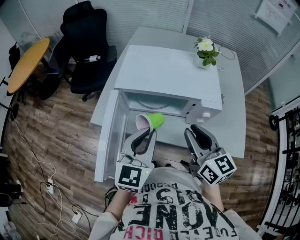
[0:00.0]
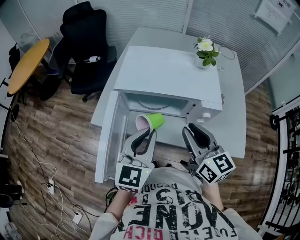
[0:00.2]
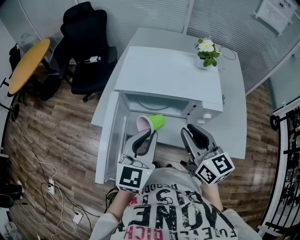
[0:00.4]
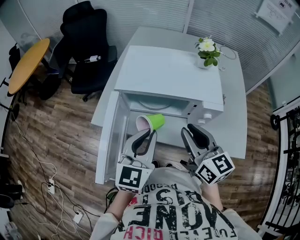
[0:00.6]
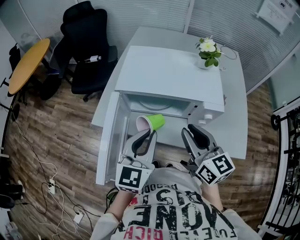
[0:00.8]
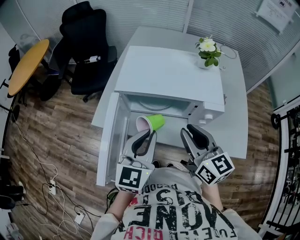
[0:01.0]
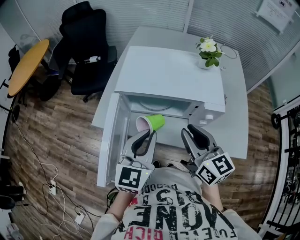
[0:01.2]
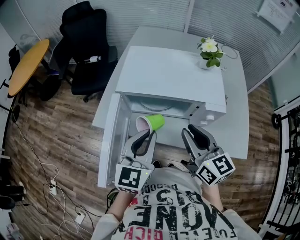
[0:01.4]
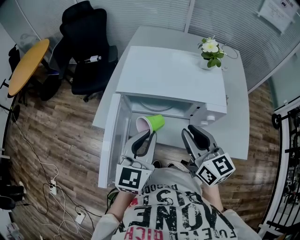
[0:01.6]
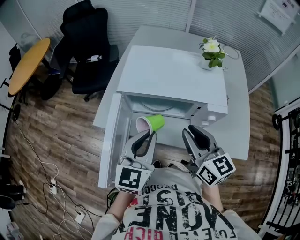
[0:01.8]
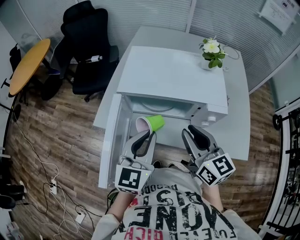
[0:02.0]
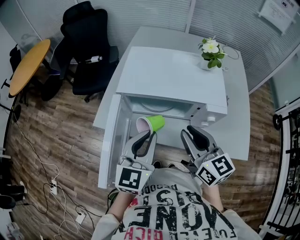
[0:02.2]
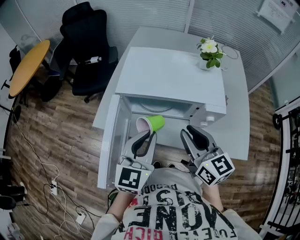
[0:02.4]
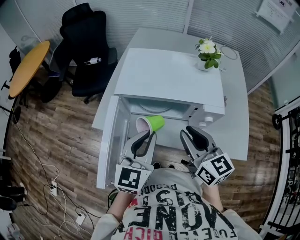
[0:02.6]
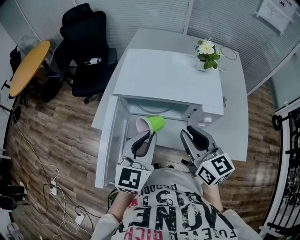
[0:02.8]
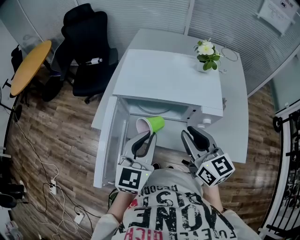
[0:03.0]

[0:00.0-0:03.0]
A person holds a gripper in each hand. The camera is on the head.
0:00.0 to 0:03.0: There are only small adjustments of the grippers.

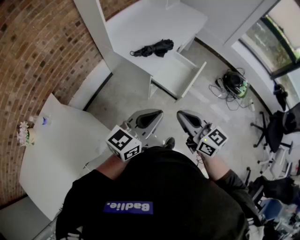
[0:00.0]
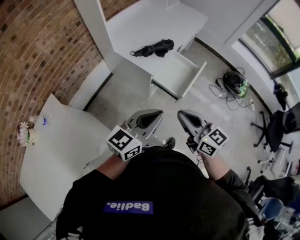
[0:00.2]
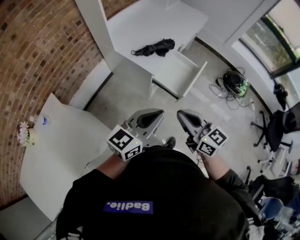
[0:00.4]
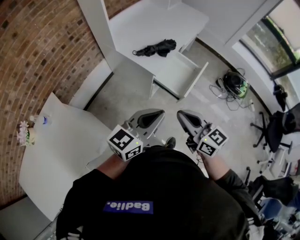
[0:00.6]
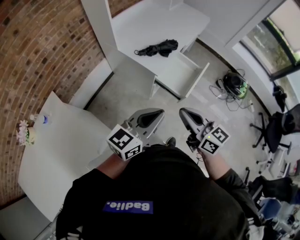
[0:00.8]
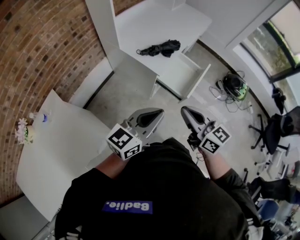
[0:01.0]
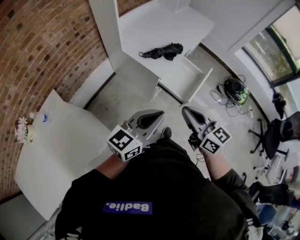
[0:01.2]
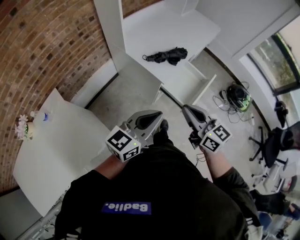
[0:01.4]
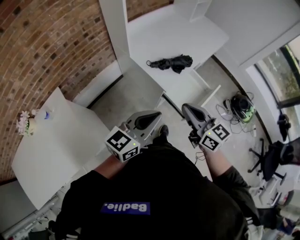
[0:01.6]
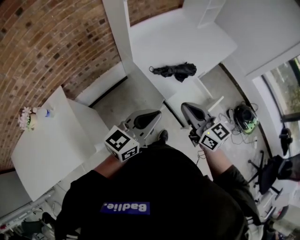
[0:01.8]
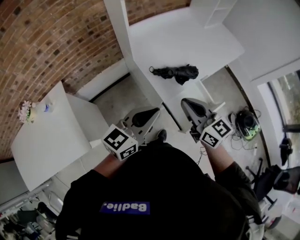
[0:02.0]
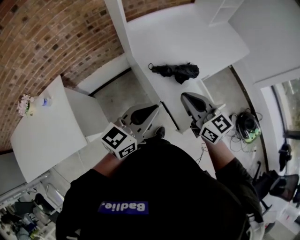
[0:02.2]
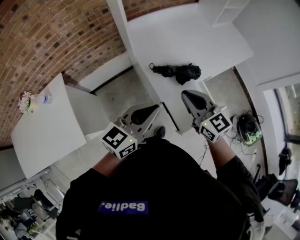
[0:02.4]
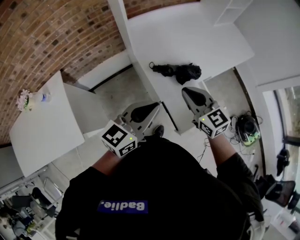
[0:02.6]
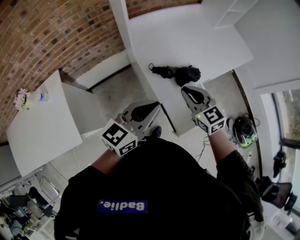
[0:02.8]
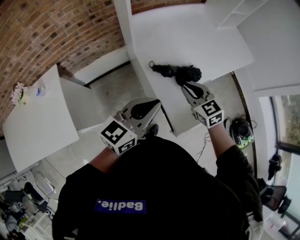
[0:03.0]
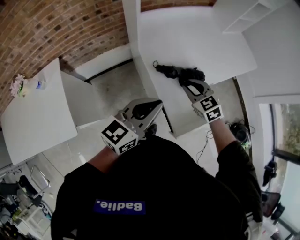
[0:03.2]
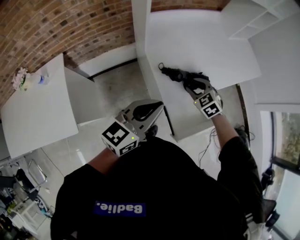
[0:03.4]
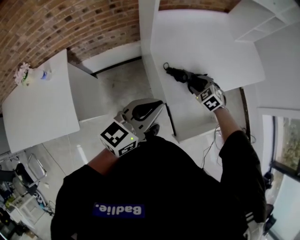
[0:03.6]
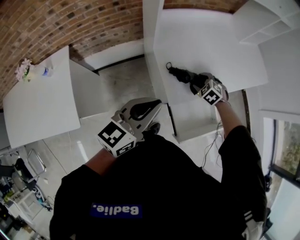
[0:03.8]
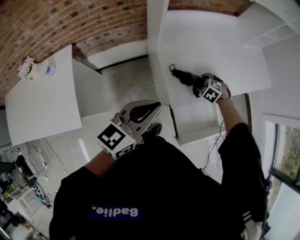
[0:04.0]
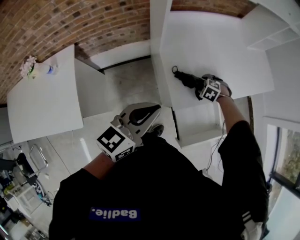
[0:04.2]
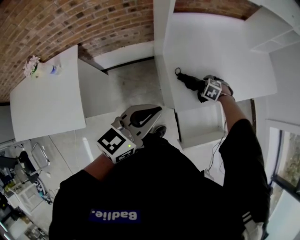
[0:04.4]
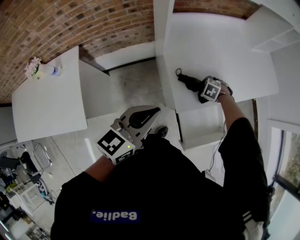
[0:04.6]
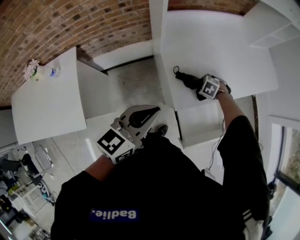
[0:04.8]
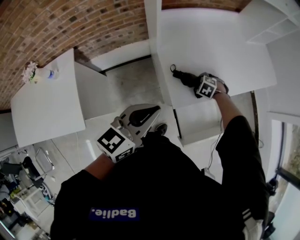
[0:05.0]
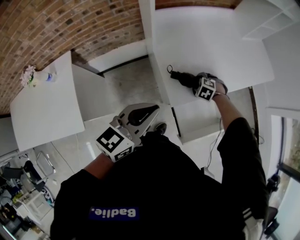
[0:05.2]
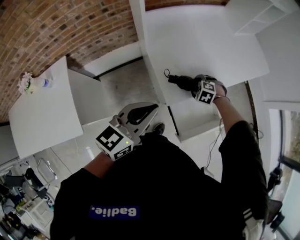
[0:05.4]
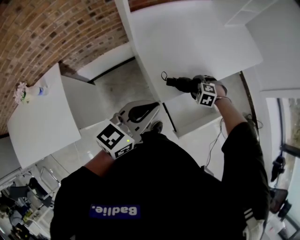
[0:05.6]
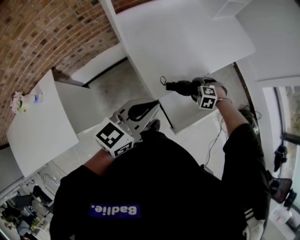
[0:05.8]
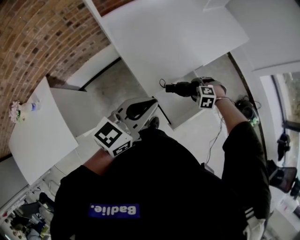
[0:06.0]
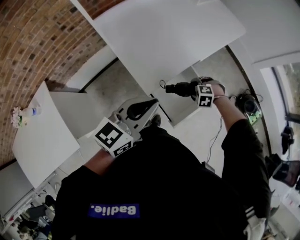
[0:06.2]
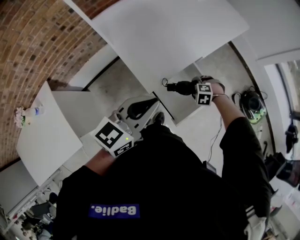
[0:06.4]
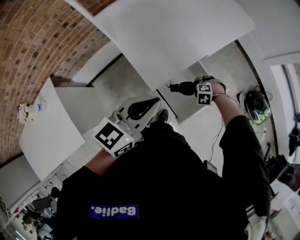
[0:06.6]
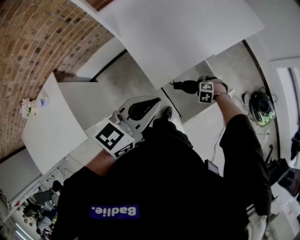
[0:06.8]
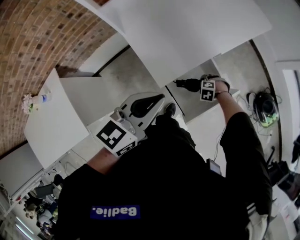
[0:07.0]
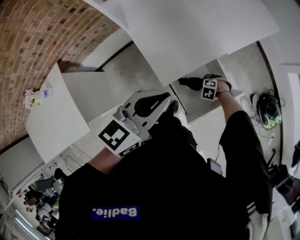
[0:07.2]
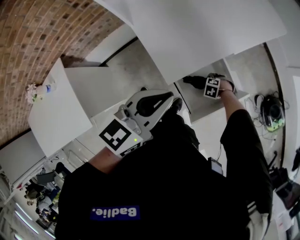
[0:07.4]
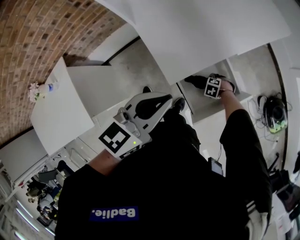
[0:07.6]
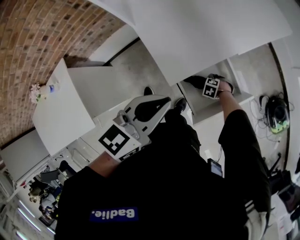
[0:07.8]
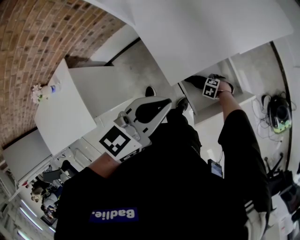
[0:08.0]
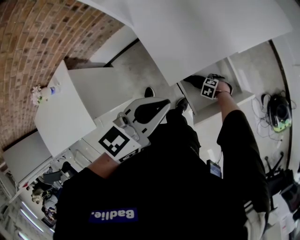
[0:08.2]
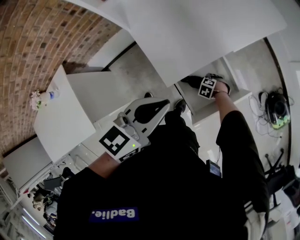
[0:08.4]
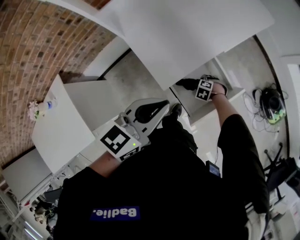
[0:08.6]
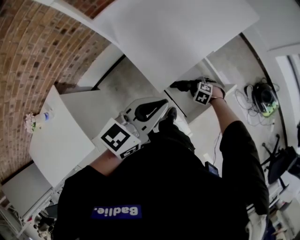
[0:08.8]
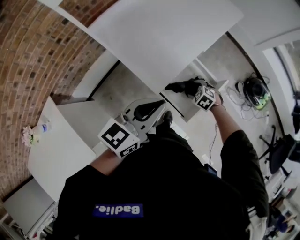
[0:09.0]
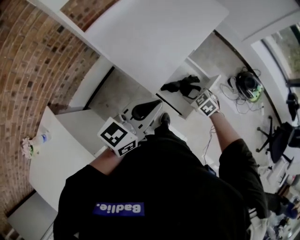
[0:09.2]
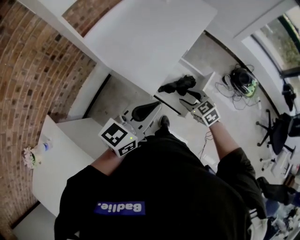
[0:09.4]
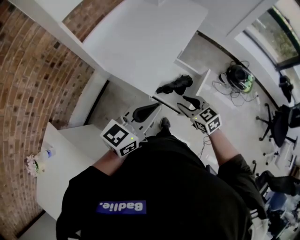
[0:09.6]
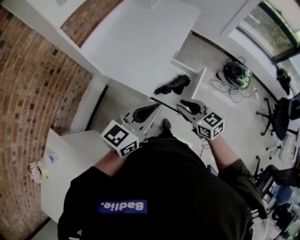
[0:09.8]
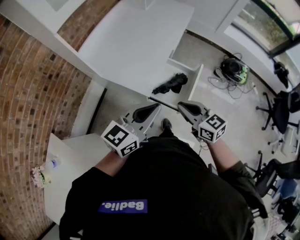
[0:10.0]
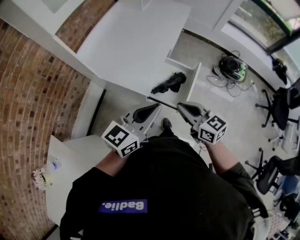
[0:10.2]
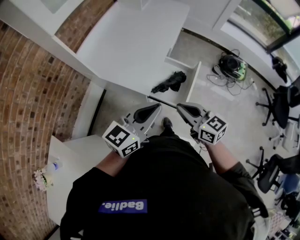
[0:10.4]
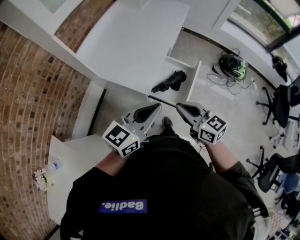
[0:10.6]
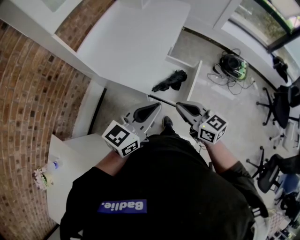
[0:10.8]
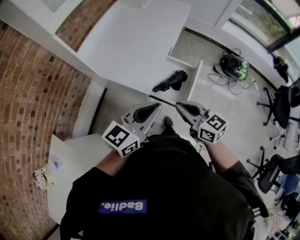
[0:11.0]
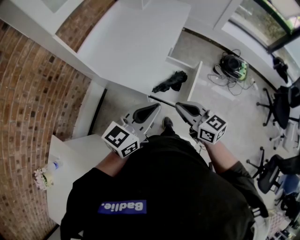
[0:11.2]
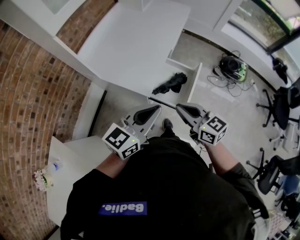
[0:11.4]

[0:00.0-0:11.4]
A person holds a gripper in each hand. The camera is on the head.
0:00.0 to 0:01.4: The left gripper goes about 5 cm to the left, while the right gripper goes approximately 5 cm forward.
0:01.4 to 0:02.8: The left gripper travels forward and to the right by roughly 20 cm, and turns by approximately 20 degrees; the right gripper is displaced forward by some 25 cm, and rotates approximately 30 degrees.
0:02.8 to 0:04.2: The left gripper moves approximately 10 cm; the right gripper goes roughly 25 cm downward, points its fingers some 50 degrees further downward, and opens.
0:04.2 to 0:05.6: The right gripper moves roughly 10 cm; the left gripper ends up approximately 5 cm from where it was.
0:05.6 to 0:07.2: The left gripper ends up roughly 10 cm from where it was. Meanwhile the right gripper shifts approximately 20 cm downward.
0:08.6 to 0:10.0: The right gripper moves upward, some 40 cm, tips its fingers upward by roughly 60 degrees, and closes its fingers. The left gripper moves approximately 10 cm, and swivels approximately 30 degrees.
0:10.0 to 0:11.4: The grippers stay close to where they were, moving slightly.

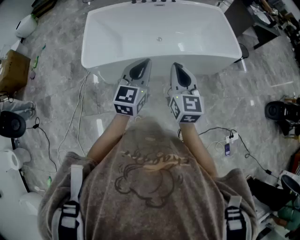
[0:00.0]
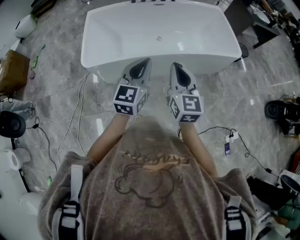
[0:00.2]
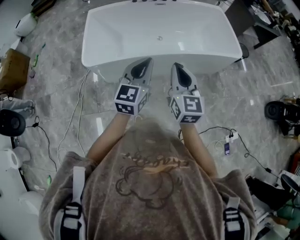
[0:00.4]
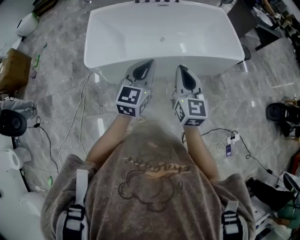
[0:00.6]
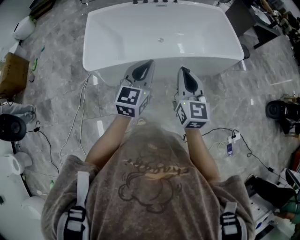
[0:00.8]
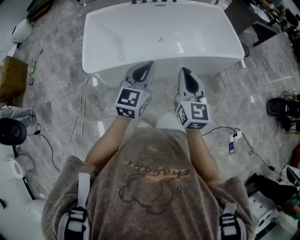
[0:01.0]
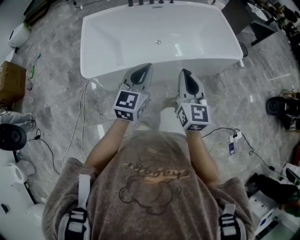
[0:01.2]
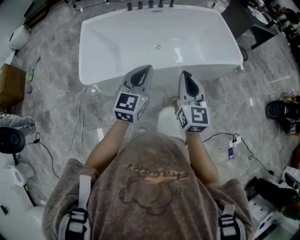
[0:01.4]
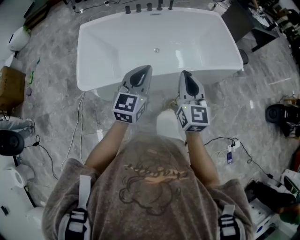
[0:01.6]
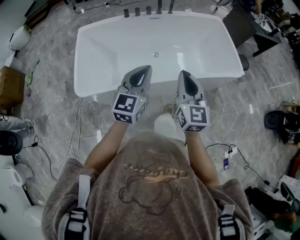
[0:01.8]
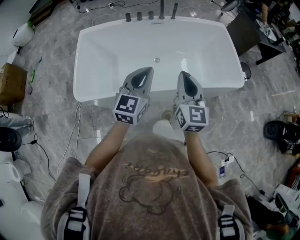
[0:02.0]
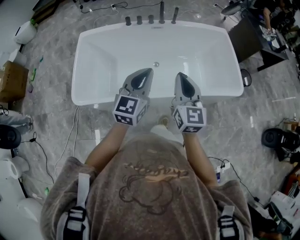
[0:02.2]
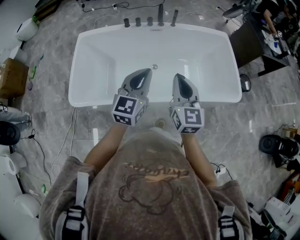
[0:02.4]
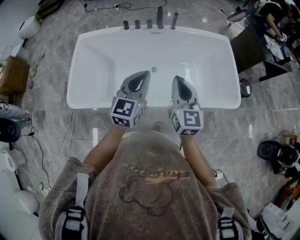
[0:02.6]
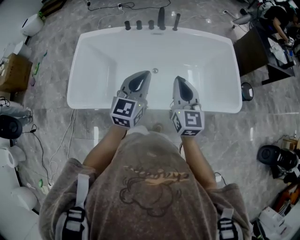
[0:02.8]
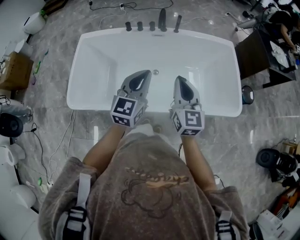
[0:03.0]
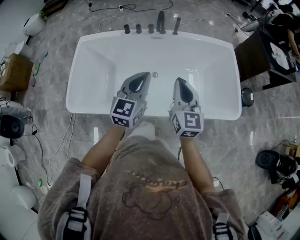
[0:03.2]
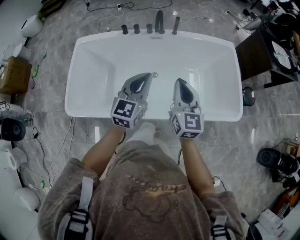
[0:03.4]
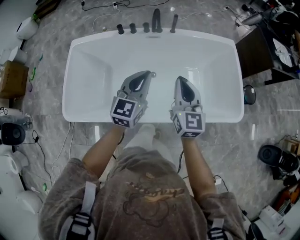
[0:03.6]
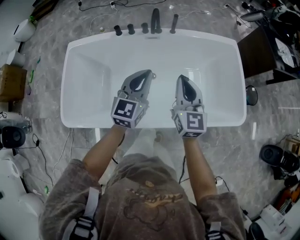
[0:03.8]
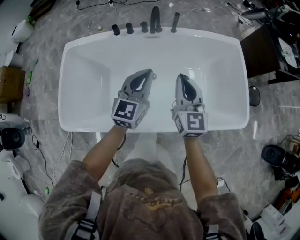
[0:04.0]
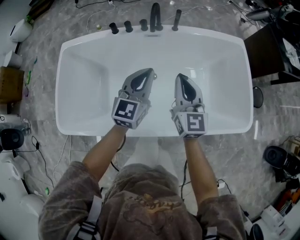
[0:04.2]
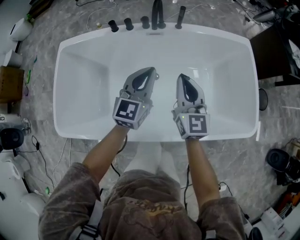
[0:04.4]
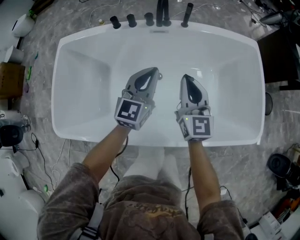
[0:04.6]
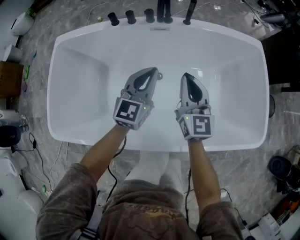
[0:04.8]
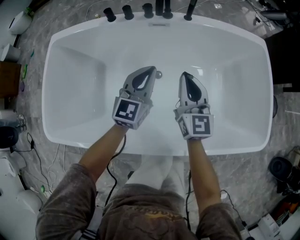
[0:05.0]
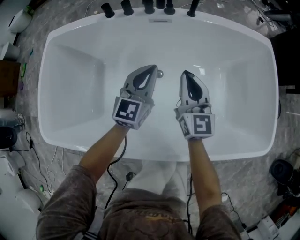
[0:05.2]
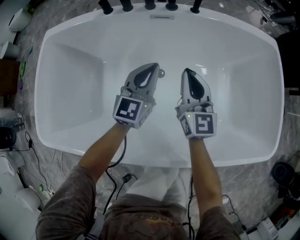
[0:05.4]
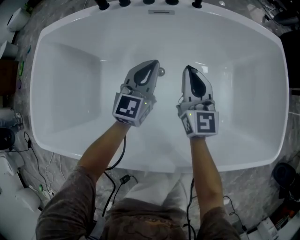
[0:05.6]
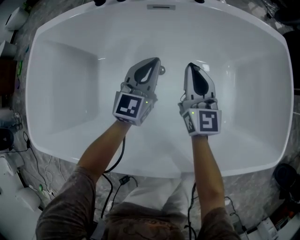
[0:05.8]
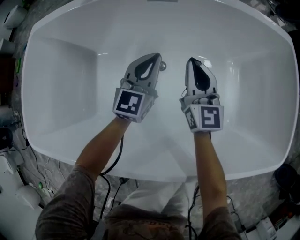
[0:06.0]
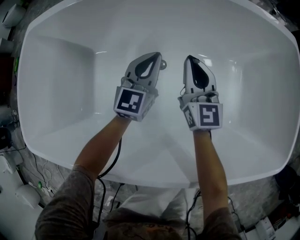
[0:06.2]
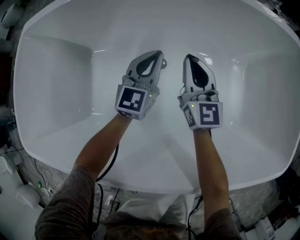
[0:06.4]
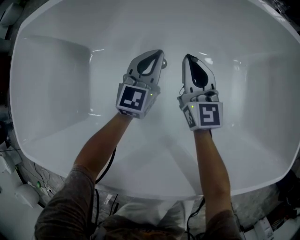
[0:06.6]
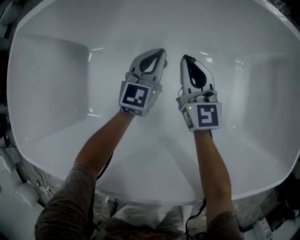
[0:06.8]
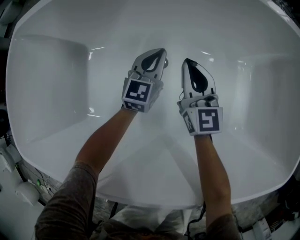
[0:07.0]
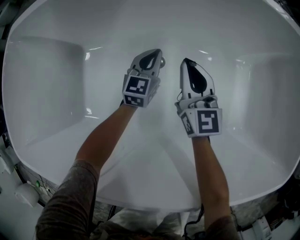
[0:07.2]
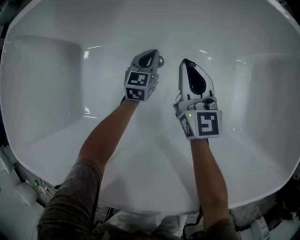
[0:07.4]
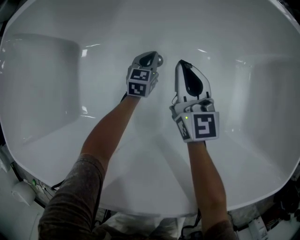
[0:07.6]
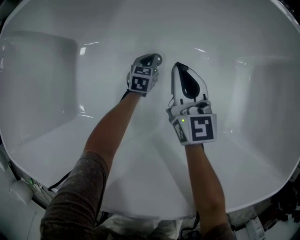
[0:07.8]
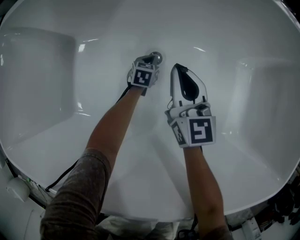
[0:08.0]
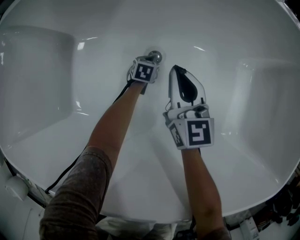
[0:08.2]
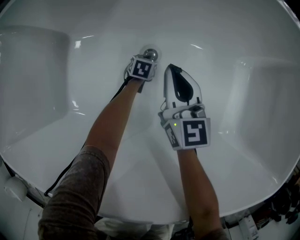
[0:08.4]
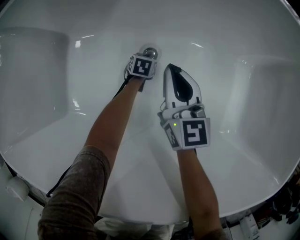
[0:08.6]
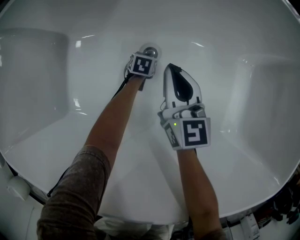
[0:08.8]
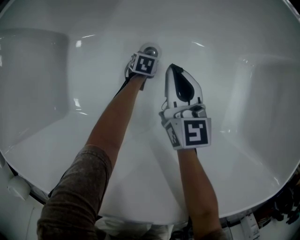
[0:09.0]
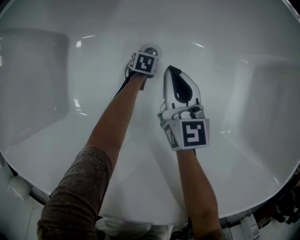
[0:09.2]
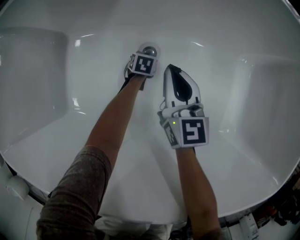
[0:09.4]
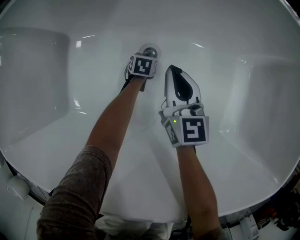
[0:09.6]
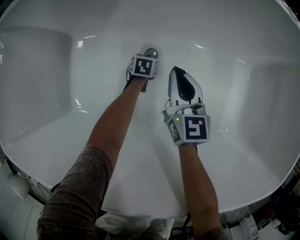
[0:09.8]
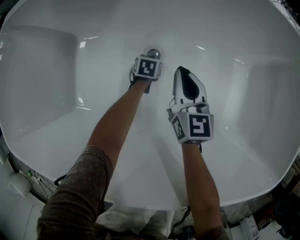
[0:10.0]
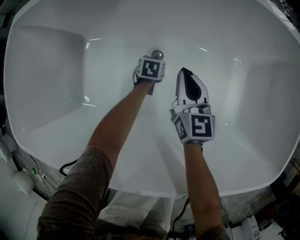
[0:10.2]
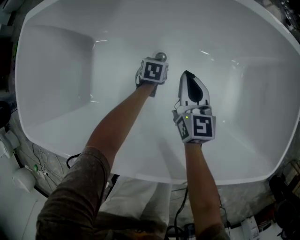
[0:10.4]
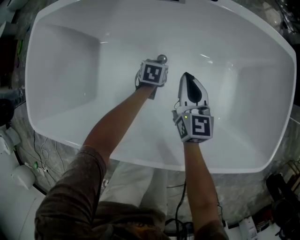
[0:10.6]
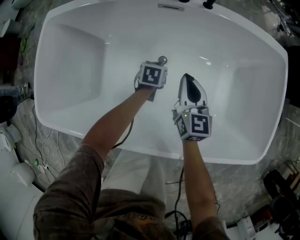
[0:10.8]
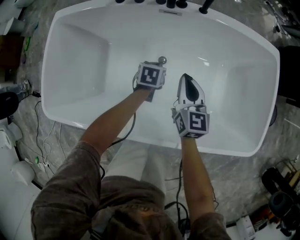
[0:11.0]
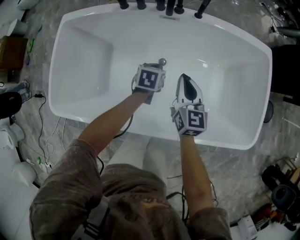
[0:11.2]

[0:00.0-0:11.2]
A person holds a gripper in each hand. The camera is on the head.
0:00.0 to 0:01.6: Both grippers move forward, approximately 15 cm.
0:01.6 to 0:03.2: The left gripper goes about 35 cm forward and to the right. The right gripper travels forward by about 30 cm.
0:03.2 to 0:04.8: Both grippers move downward and forward, roughly 35 cm.
0:04.8 to 0:06.4: Both grippers travel together downward, approximately 30 cm.
0:06.4 to 0:08.0: The left gripper travels downward by approximately 35 cm, and angles its fingers downward, by roughly 40 degrees. Meanwhile the right gripper shifts some 10 cm downward.
0:09.6 to 0:11.2: Both grippers move upward, about 50 cm.
